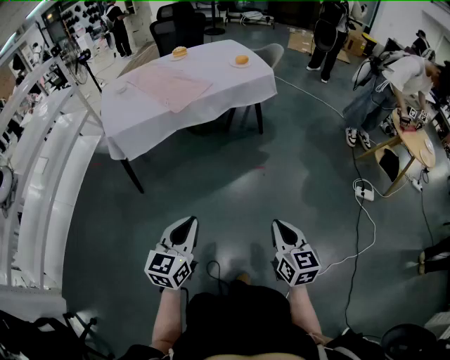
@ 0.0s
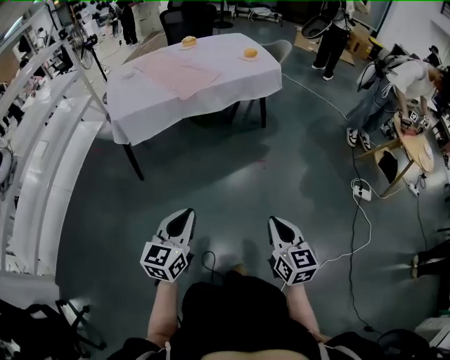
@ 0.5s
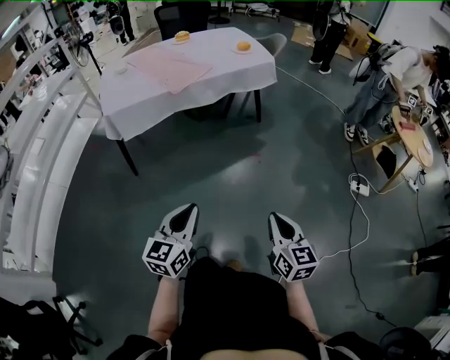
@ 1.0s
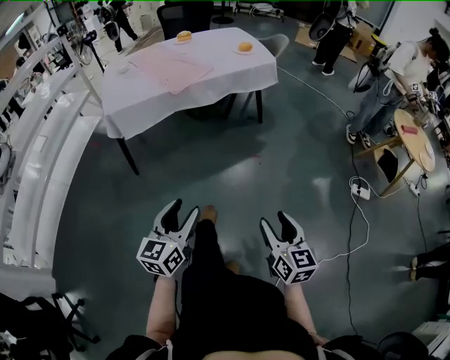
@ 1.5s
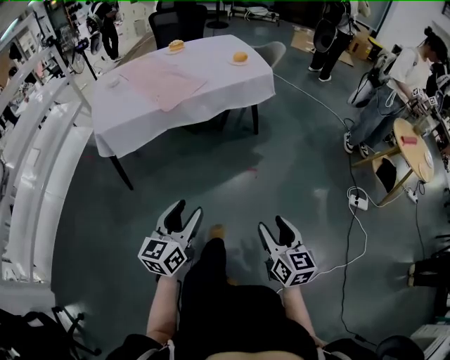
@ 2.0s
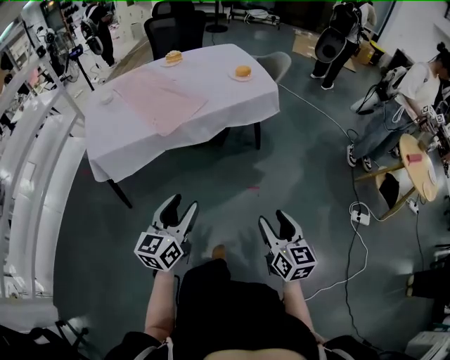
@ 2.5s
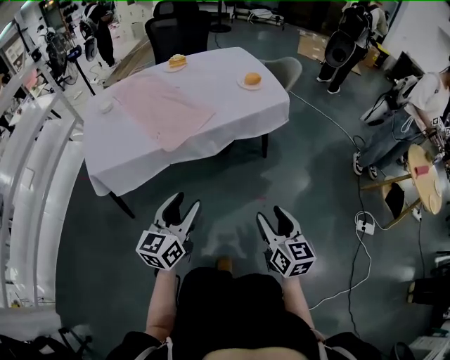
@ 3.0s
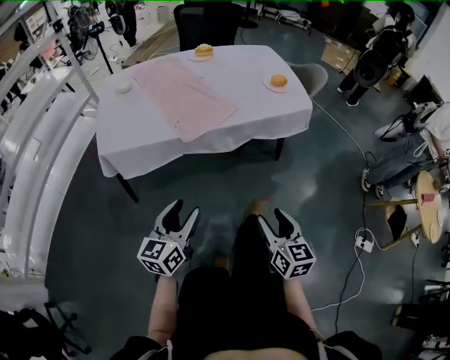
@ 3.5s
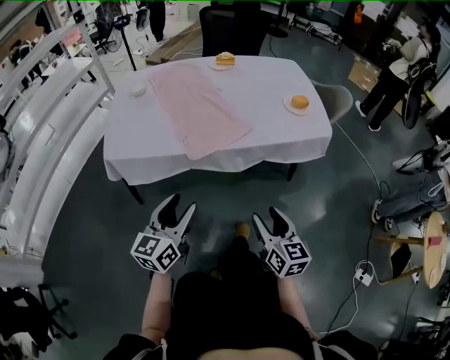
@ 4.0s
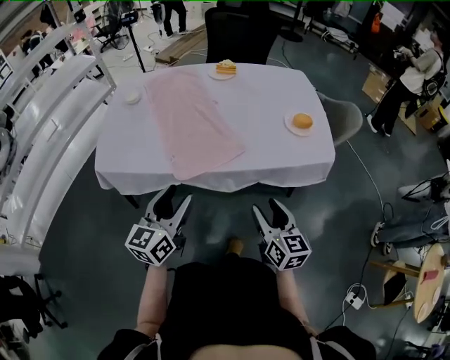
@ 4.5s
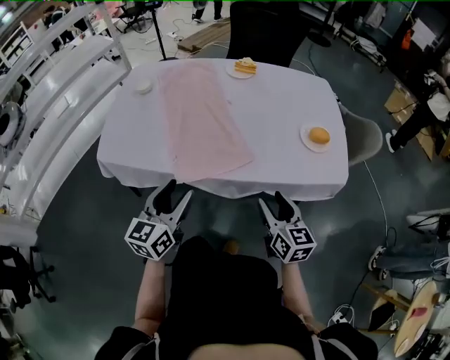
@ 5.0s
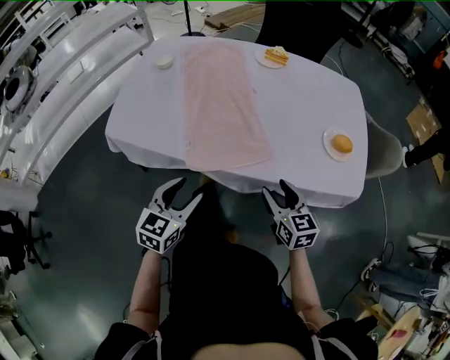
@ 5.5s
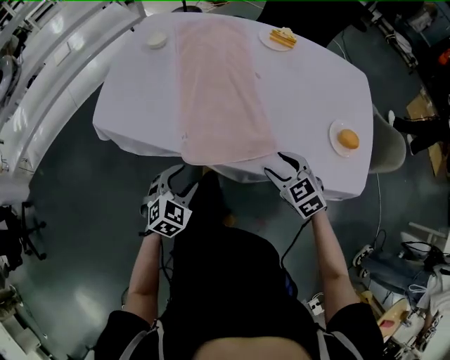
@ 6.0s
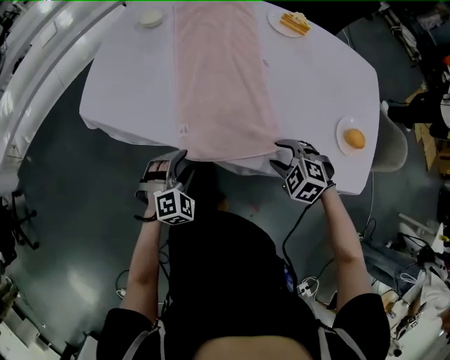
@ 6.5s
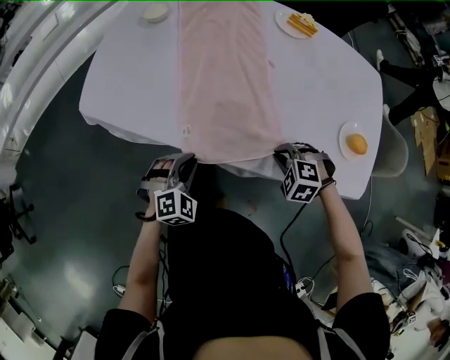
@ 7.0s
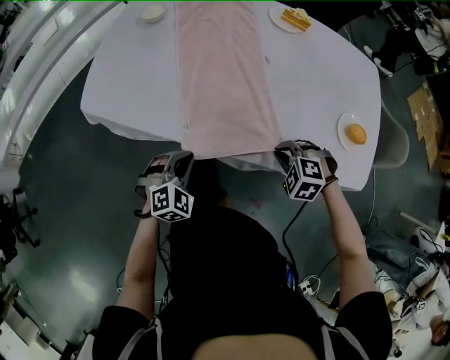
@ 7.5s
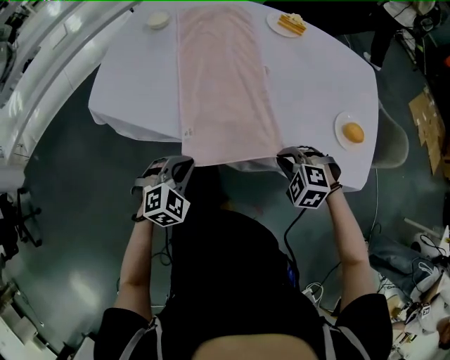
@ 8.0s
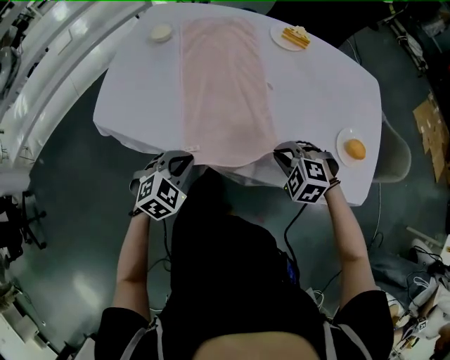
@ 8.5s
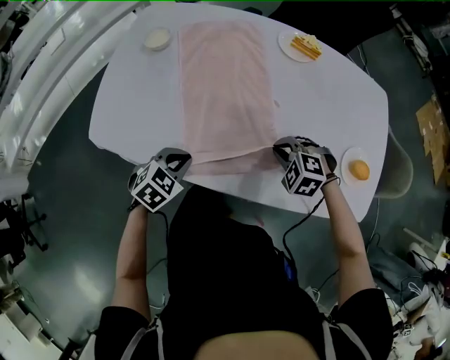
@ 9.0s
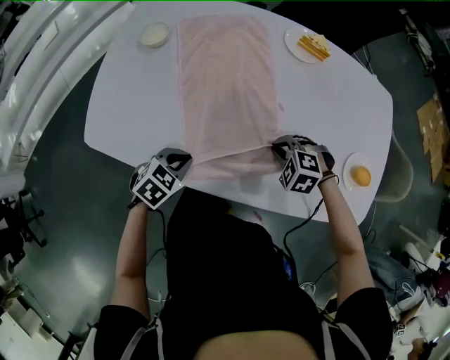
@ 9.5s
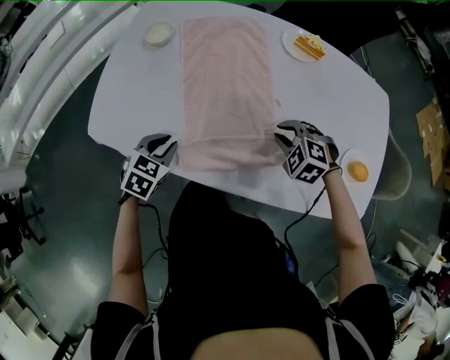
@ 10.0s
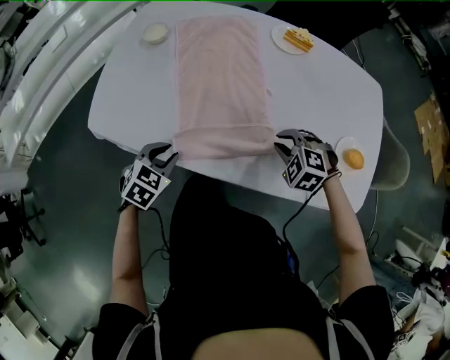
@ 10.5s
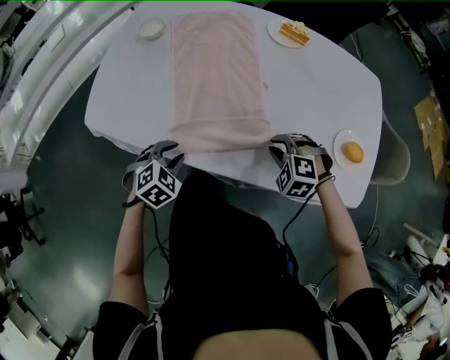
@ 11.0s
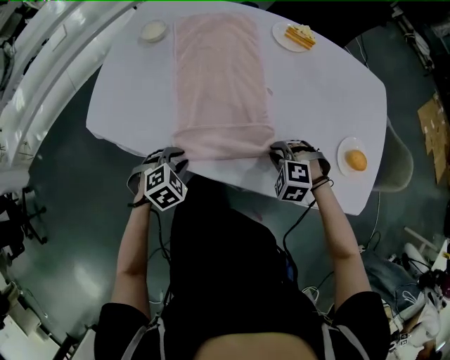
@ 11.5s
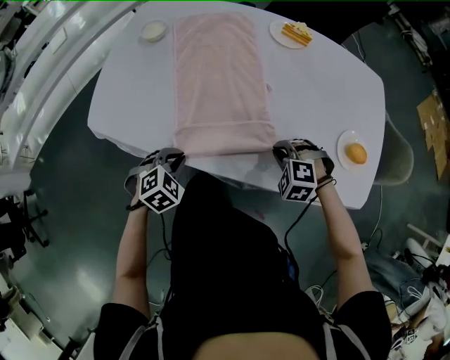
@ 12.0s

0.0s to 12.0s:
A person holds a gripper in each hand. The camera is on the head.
0.0s to 2.0s: The grippers both shift forward by some 10 cm. The right gripper opens, while the left gripper opens up.
2.0s to 4.0s: The grippers both shift forward by approximately 40 cm.
4.0s to 6.0s: The left gripper ends up approximately 30 cm from where it was, and tilts its fingers about 40 degrees downward. The right gripper moves some 40 cm, and changes its angle by some 60 degrees.
6.0s to 8.0s: The left gripper closes. The right gripper rotates roughly 40 degrees, and closes up.
8.0s to 10.0s: The right gripper moves forward, roughly 20 cm. The left gripper moves forward and to the left, about 20 cm, and rotates roughly 30 degrees.
10.0s to 12.0s: The right gripper is displaced backward by some 10 cm. Meanwhile the left gripper shifts roughly 10 cm backward and to the right, and rotates roughly 30 degrees.

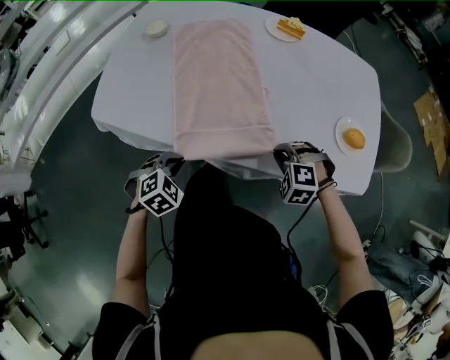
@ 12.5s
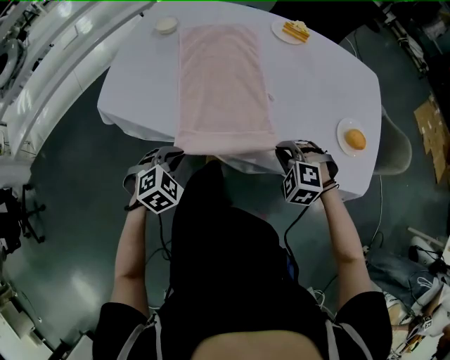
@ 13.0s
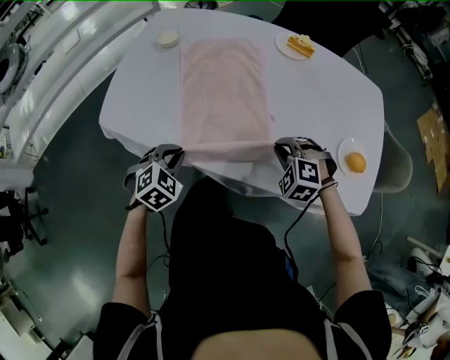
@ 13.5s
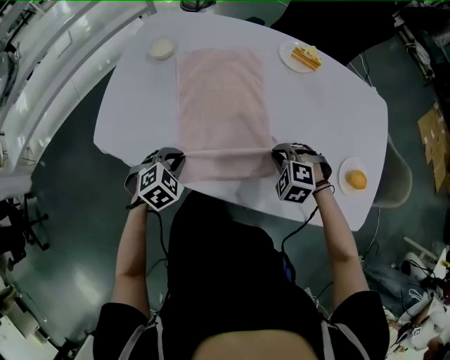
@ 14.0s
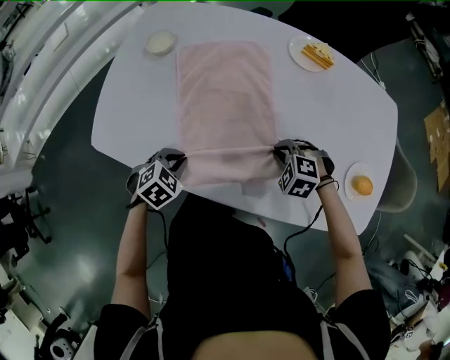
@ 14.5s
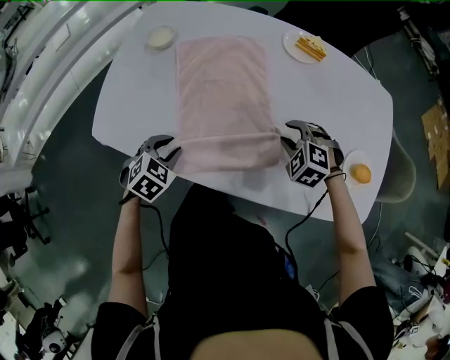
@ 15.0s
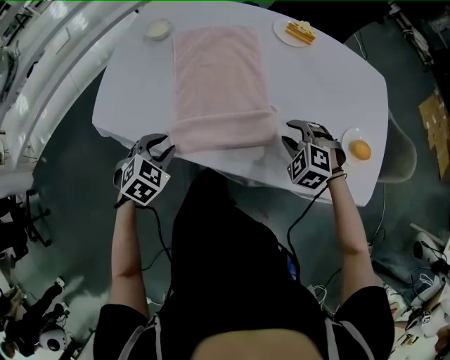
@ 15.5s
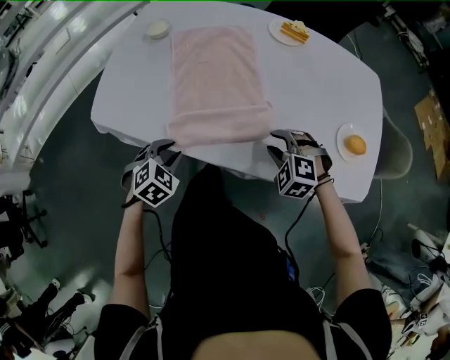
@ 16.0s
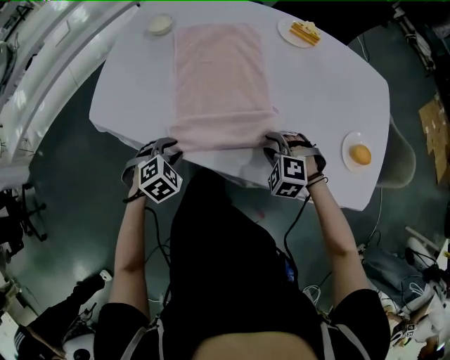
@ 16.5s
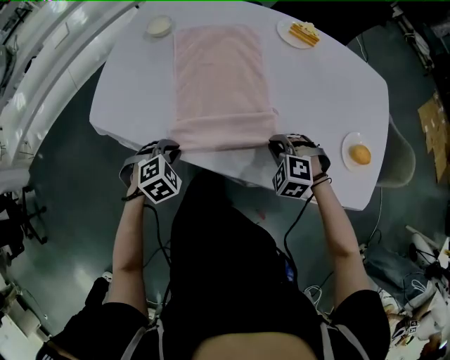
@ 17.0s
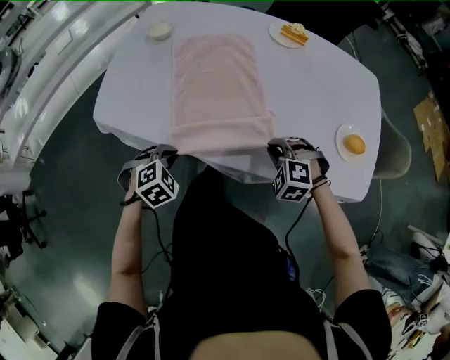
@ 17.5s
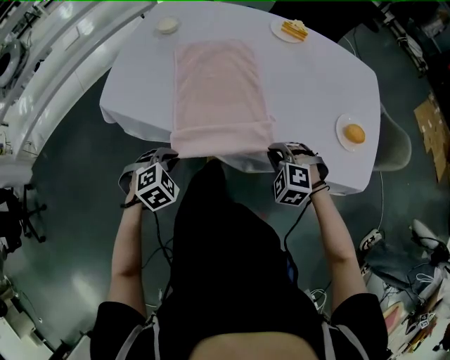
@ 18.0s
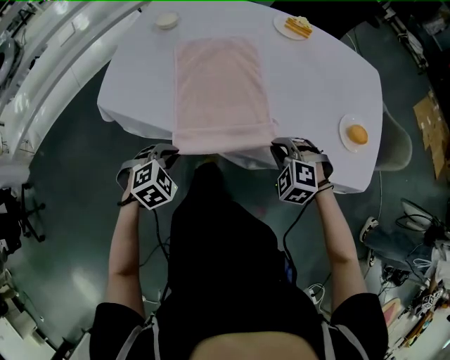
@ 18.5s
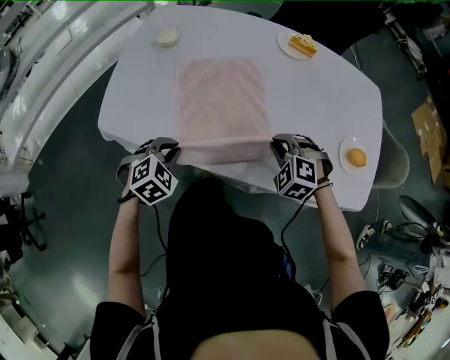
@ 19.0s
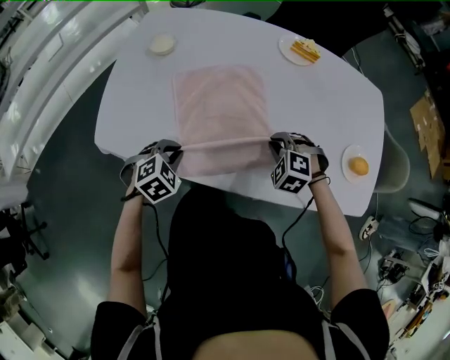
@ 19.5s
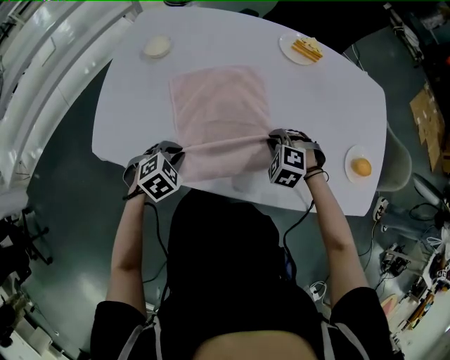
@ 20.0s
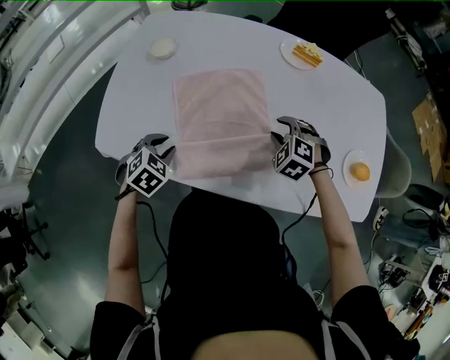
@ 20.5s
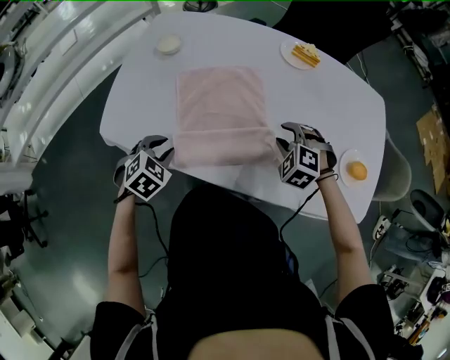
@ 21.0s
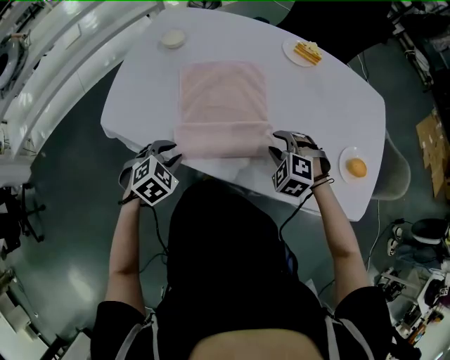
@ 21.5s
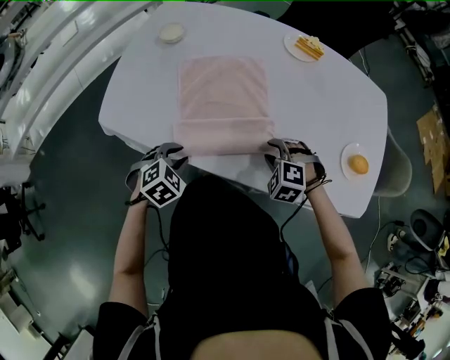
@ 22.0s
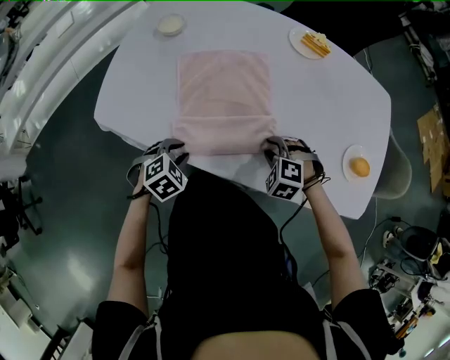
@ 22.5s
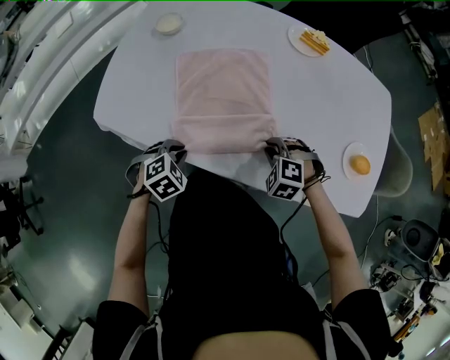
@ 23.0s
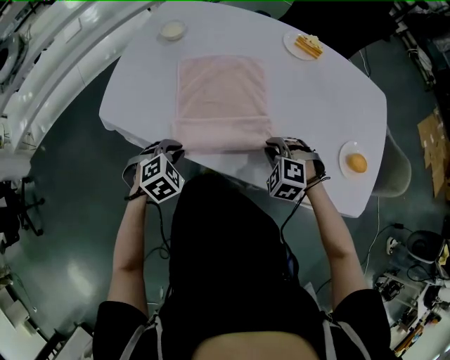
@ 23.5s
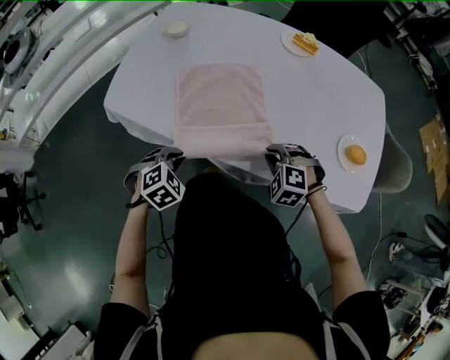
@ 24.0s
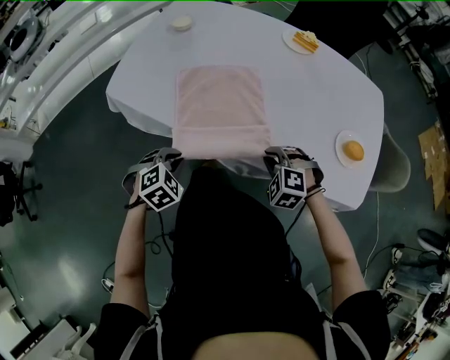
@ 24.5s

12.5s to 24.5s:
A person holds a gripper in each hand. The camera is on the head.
12.5s to 14.5s: The two grippers go roughly 15 cm forward.
14.5s to 16.5s: The two grippers go approximately 10 cm backward. The right gripper opens up, while the left gripper opens up.
16.5s to 18.5s: The left gripper is displaced backward by some 10 cm, and closes; the right gripper travels backward and upward by roughly 10 cm, and closes up.
18.5s to 20.5s: The left gripper moves forward and to the left, some 20 cm, and opens its fingers. Meanwhile the right gripper heads forward, covering some 20 cm, and opens up.
20.5s to 22.5s: The left gripper moves backward and to the right, about 10 cm; the right gripper travels backward by about 10 cm.
22.5s to 24.5s: The grippers both shift backward by some 15 cm. The right gripper closes its fingers.

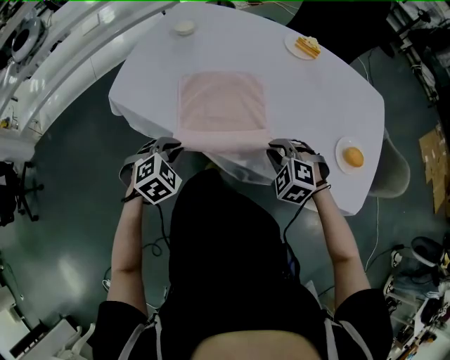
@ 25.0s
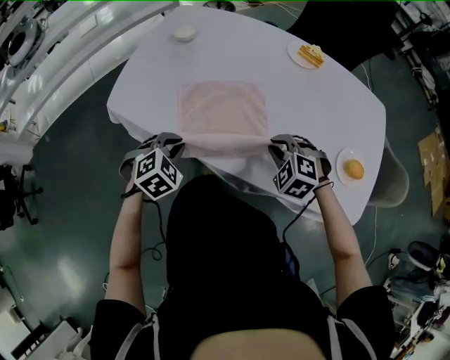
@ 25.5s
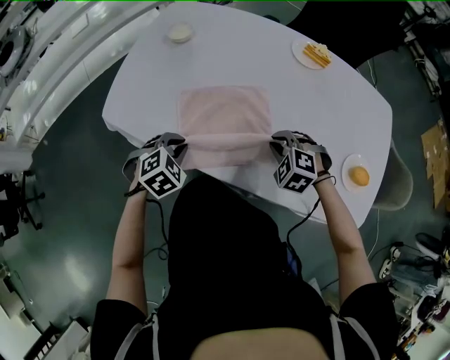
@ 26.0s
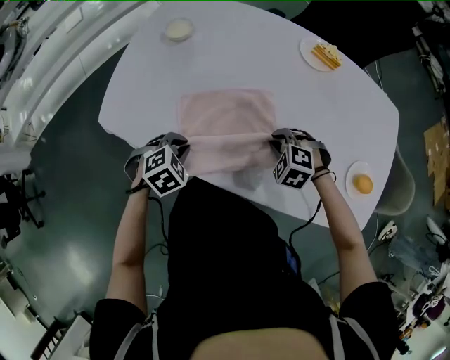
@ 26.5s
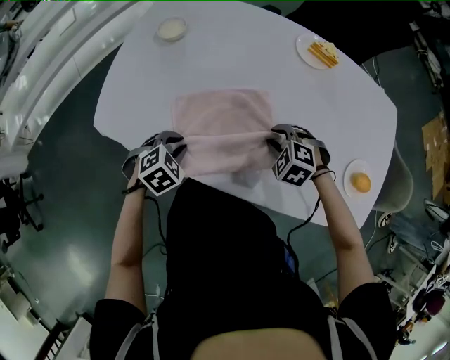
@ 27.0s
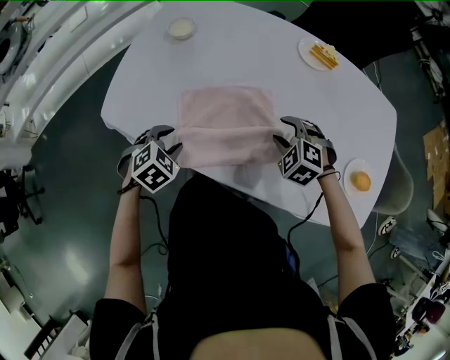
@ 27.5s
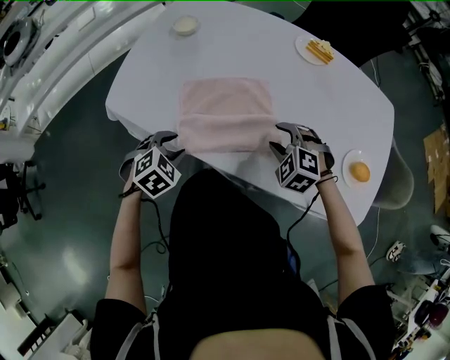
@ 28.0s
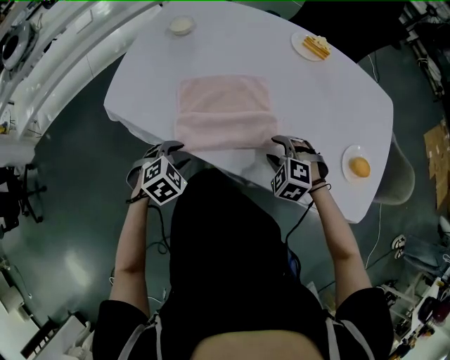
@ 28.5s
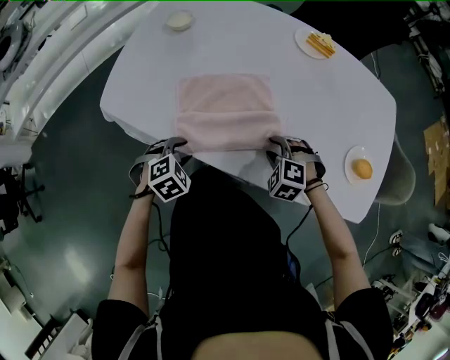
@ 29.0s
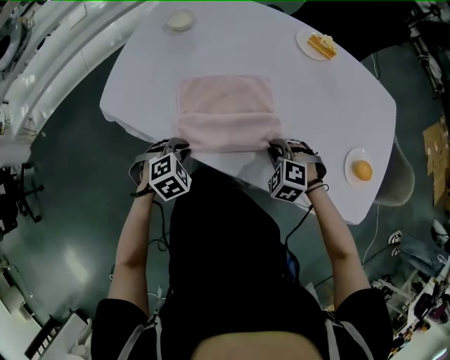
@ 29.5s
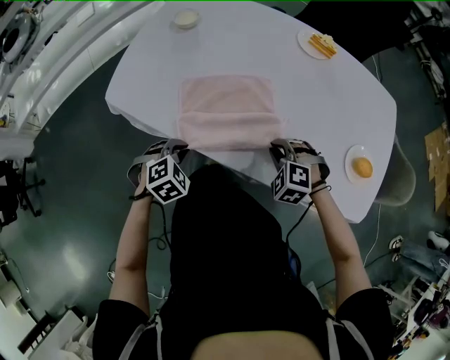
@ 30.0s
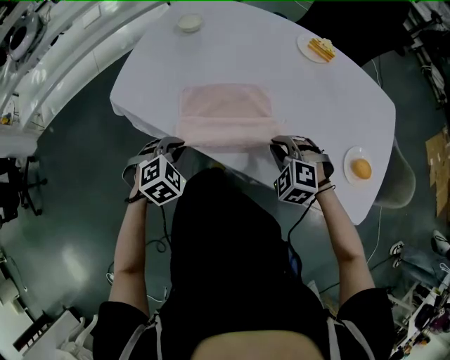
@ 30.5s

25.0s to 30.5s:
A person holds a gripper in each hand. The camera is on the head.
25.0s to 27.0s: The left gripper travels forward and downward by approximately 15 cm. Meanwhile the right gripper shifts roughly 15 cm forward.
27.0s to 28.5s: Both grippers move backward, approximately 10 cm. The left gripper opens, while the right gripper opens its fingers.
28.5s to 30.5s: The left gripper closes its fingers. The right gripper closes up.
